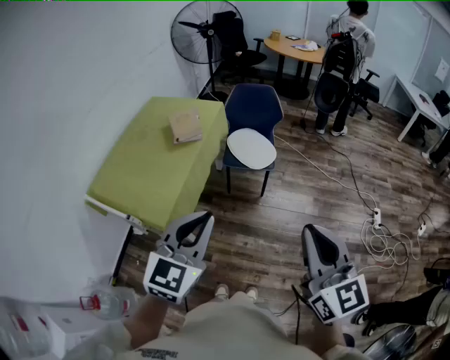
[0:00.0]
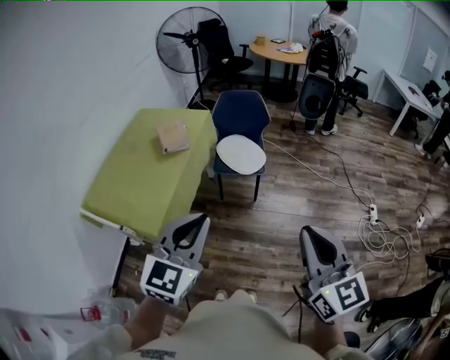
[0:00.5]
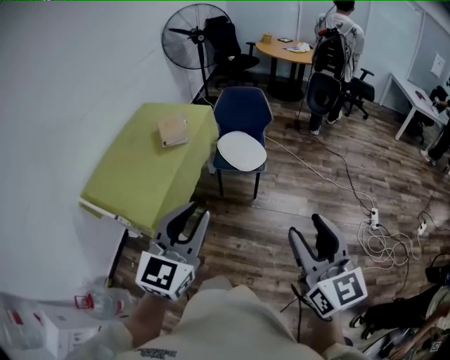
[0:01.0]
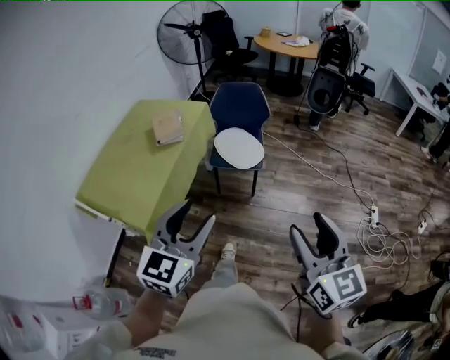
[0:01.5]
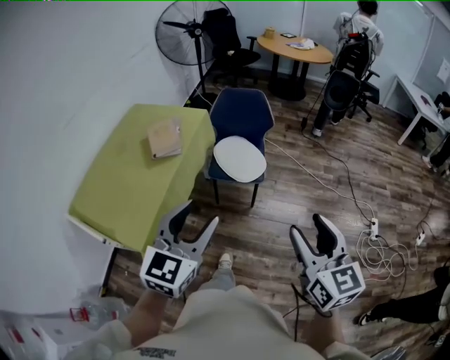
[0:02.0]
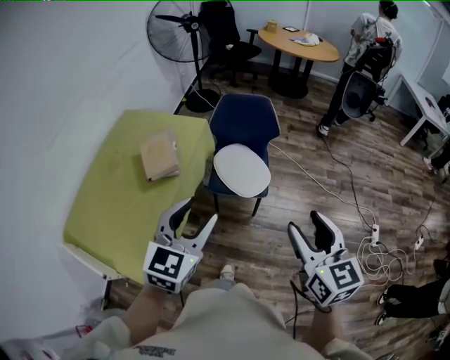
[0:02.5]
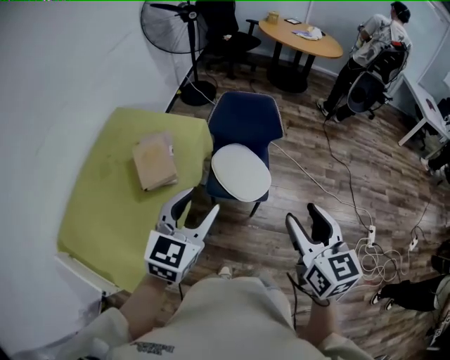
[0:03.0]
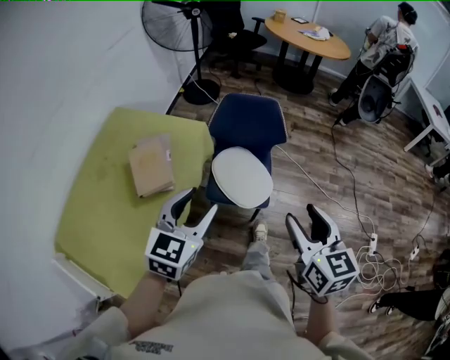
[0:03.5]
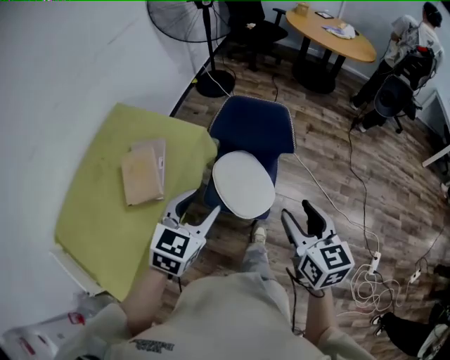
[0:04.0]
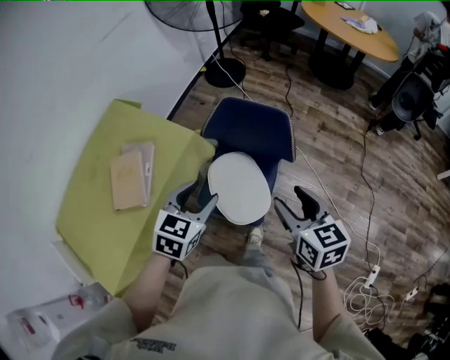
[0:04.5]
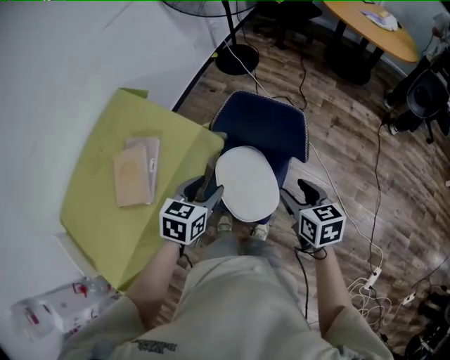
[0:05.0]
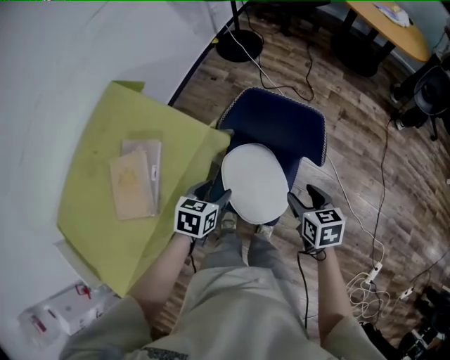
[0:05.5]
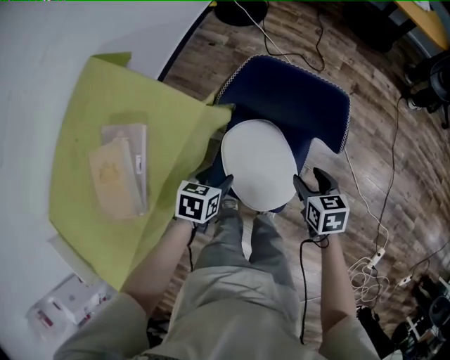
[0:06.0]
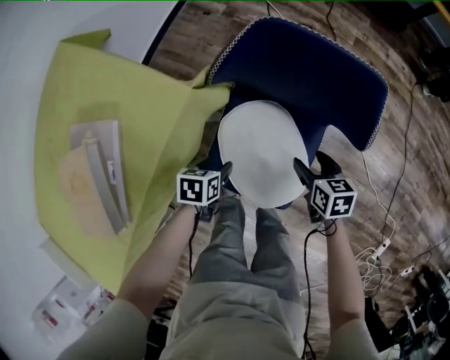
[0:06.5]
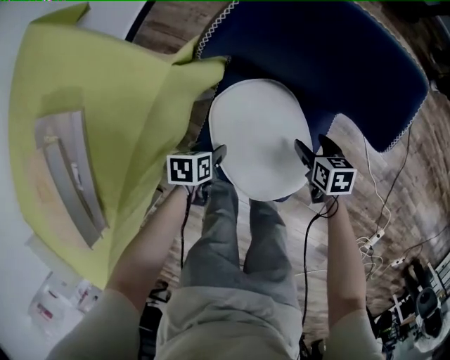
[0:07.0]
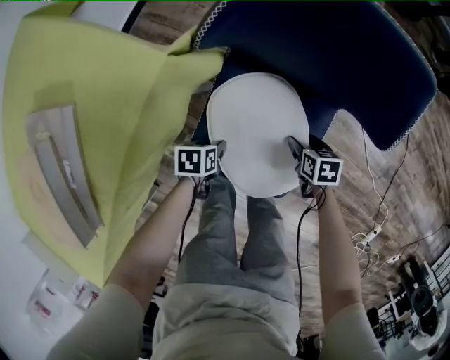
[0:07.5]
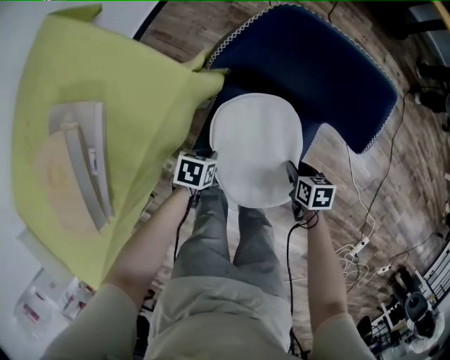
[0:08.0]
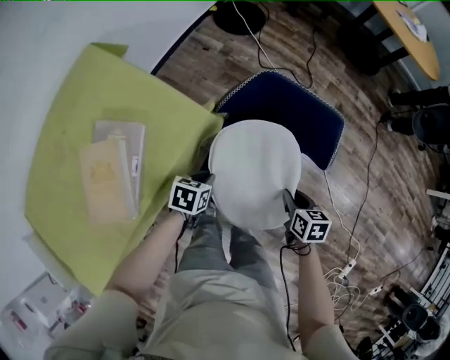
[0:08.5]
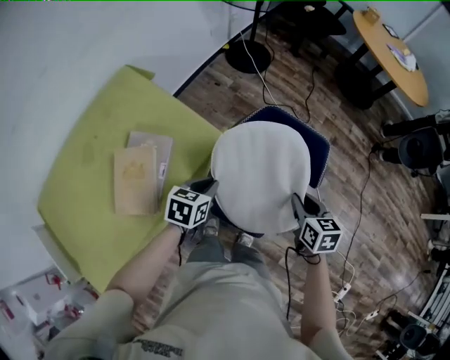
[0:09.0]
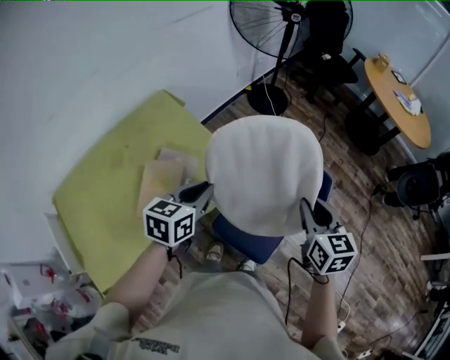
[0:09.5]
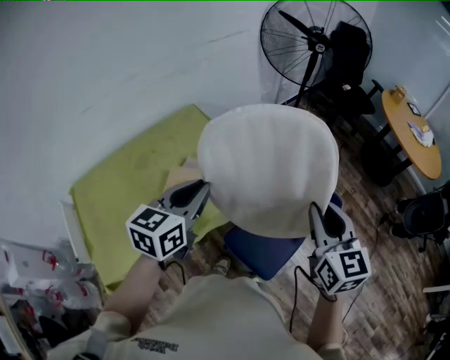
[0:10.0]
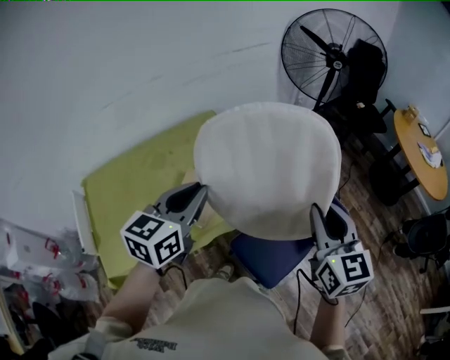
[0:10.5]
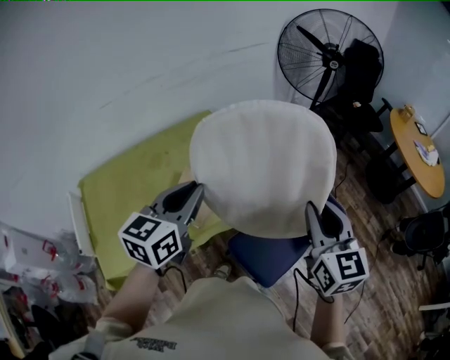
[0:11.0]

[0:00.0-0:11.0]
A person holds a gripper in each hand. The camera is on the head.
0:00.0 to 0:02.0: The grippers both shift forward and to the right by about 15 cm. The left gripper opens its fingers; the right gripper opens up.
0:02.0 to 0:03.5: The two grippers go some 30 cm forward.
0:03.5 to 0:05.5: The two grippers go roughly 40 cm forward and downward. The right gripper rotates roughly 30 degrees. Meanwhile the left gripper points its fingers roughly 30 degrees further downward.
0:05.5 to 0:07.5: The grippers both shift downward by approximately 40 cm. The left gripper rotates approximately 30 degrees, while the right gripper changes its angle by some 20 degrees.
0:07.5 to 0:09.0: The two grippers go roughly 40 cm upward. The left gripper rotates approximately 30 degrees, and closes. The right gripper changes its angle by about 30 degrees, and closes its fingers.
0:09.0 to 0:11.0: Both grippers travel together upward, about 30 cm. The right gripper tips its fingers upward by about 30 degrees. The left gripper points its fingers approximately 30 degrees further upward.

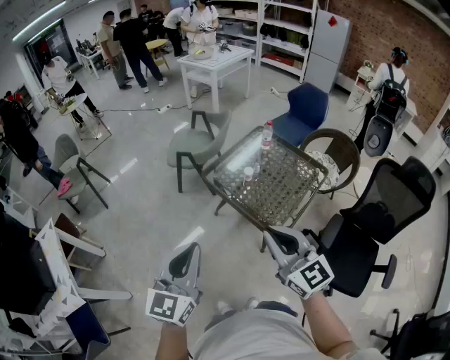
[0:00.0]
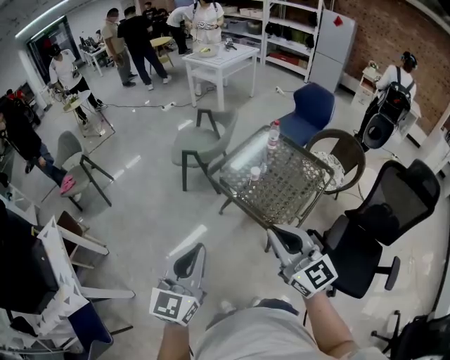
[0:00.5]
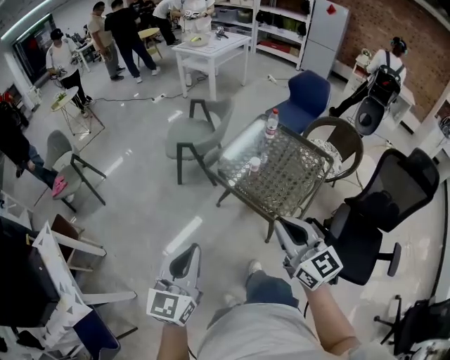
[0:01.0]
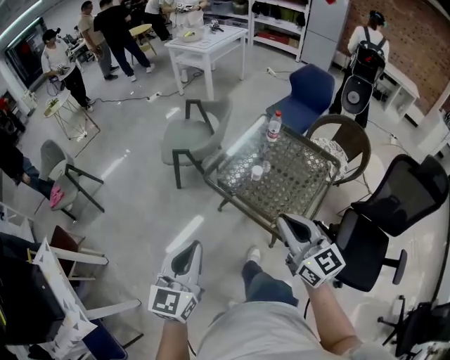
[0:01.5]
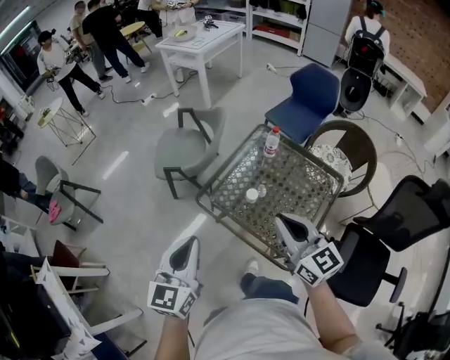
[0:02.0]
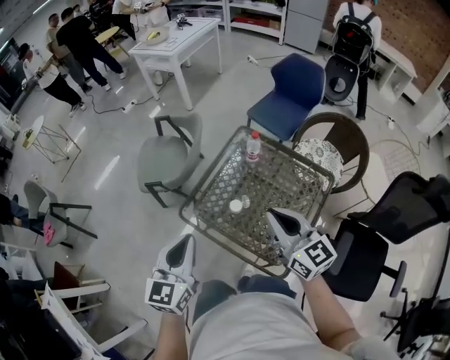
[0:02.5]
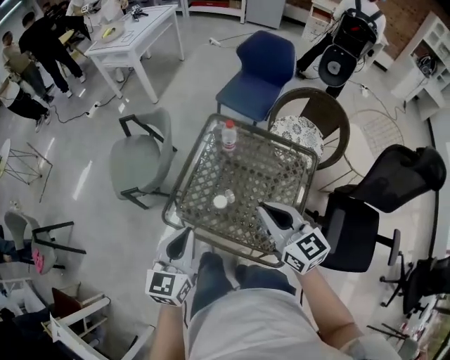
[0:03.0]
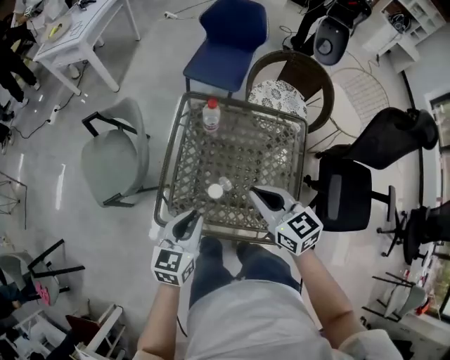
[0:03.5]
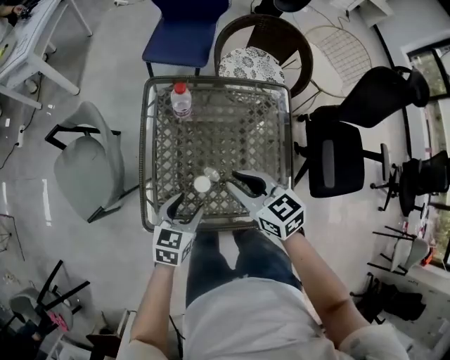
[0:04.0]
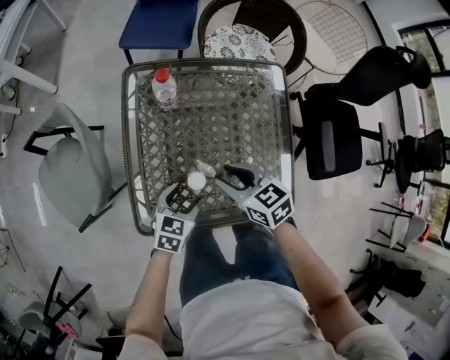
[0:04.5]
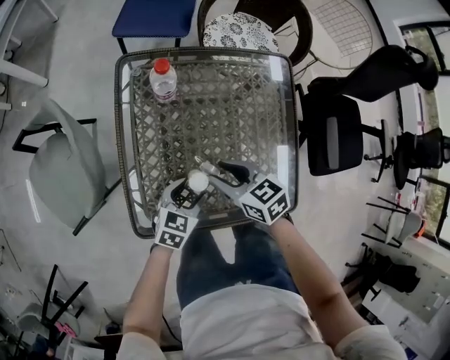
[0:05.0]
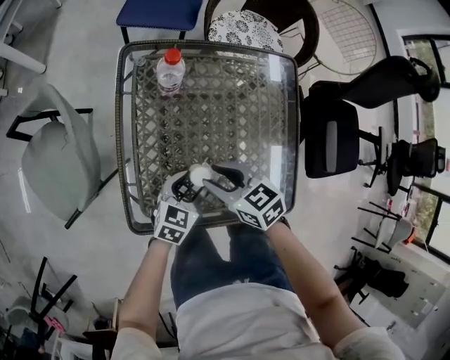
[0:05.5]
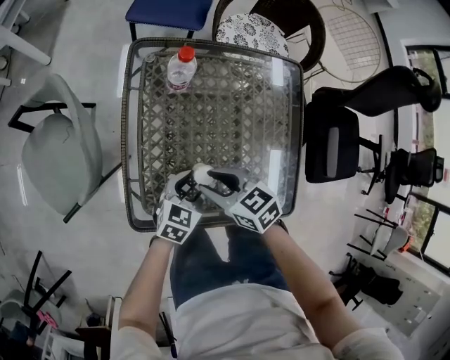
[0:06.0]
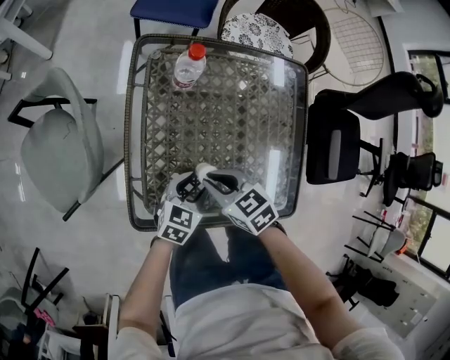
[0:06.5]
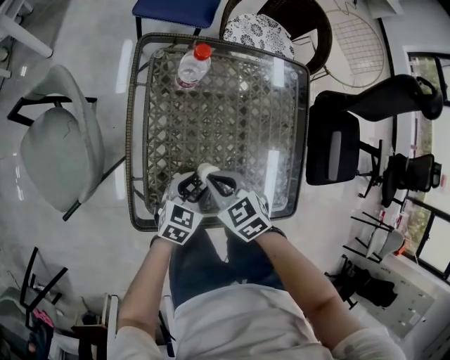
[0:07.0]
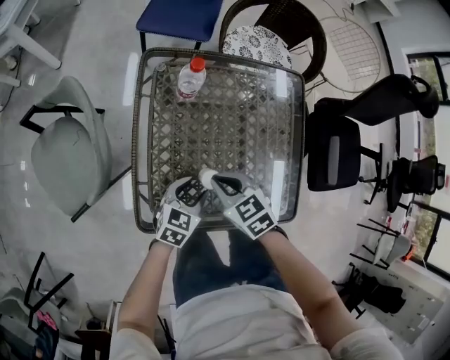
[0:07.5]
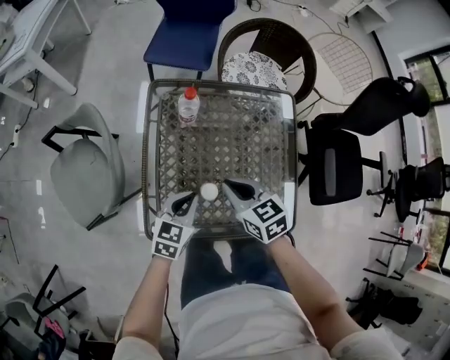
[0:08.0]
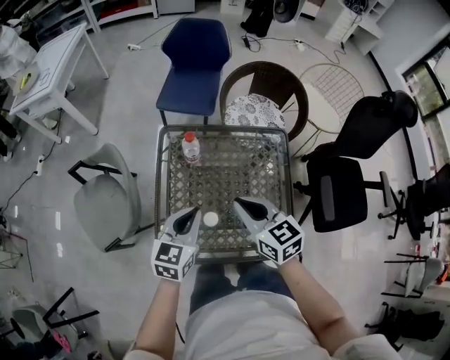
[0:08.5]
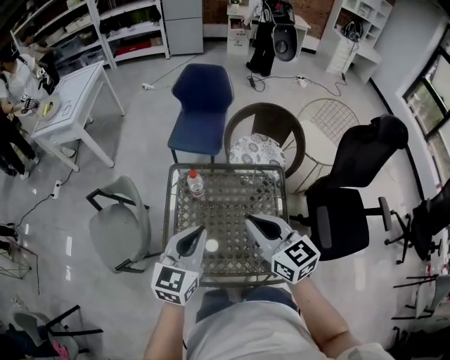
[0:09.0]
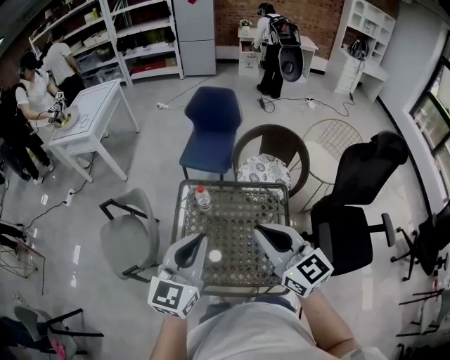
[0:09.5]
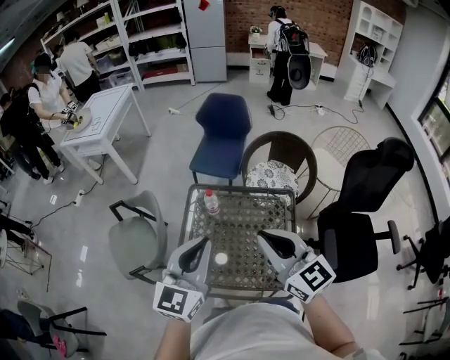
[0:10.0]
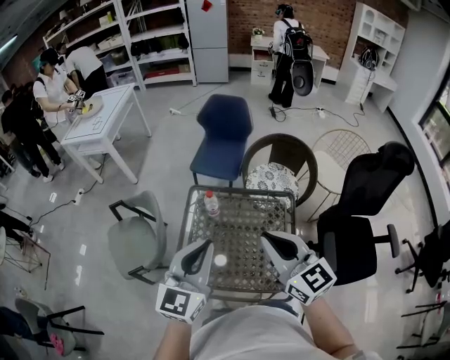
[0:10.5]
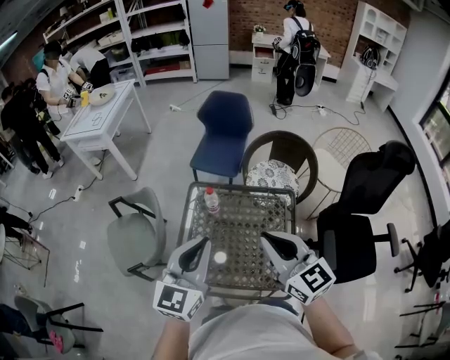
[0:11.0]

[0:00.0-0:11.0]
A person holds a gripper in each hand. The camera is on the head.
0:00.0 to 0:02.0: The two grippers go roughly 30 cm forward.
0:02.0 to 0:03.5: The right gripper ends up about 20 cm from where it was, and rotates approximately 30 degrees. The left gripper changes place by about 30 cm, and swivels some 40 degrees.
0:03.5 to 0:05.5: Both grippers move downward, roughly 25 cm. The right gripper swivels some 20 degrees, and opens, while the left gripper turns by some 30 degrees, and opens up.
0:05.5 to 0:07.5: The right gripper closes its fingers.
0:07.5 to 0:09.0: The grippers both shift upward by some 35 cm. The right gripper points its fingers some 40 degrees further upward; the left gripper swivels roughly 30 degrees, and closes up.
0:09.0 to 0:11.0: The right gripper travels upward and backward by approximately 10 cm; the left gripper shifts approximately 10 cm upward.

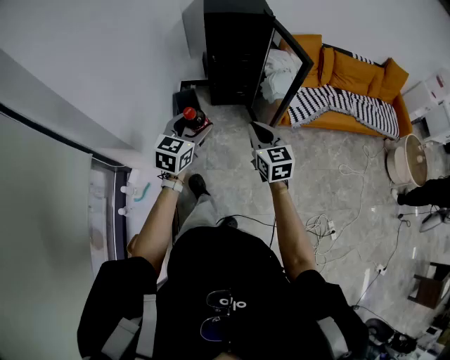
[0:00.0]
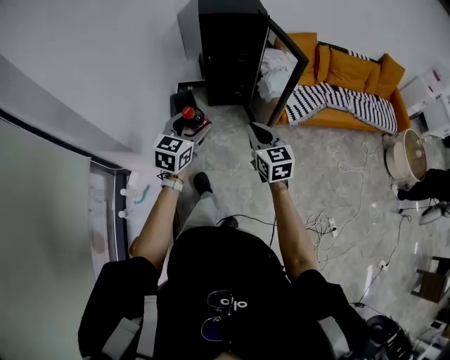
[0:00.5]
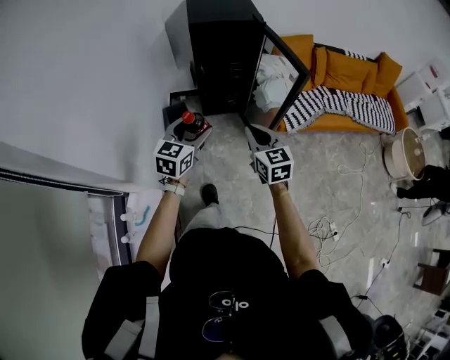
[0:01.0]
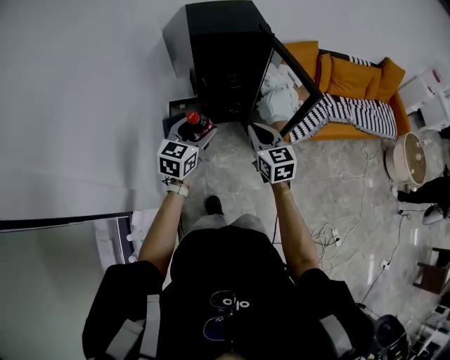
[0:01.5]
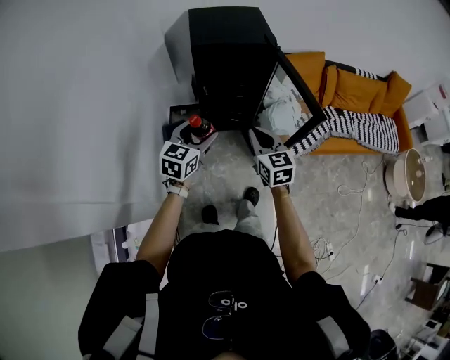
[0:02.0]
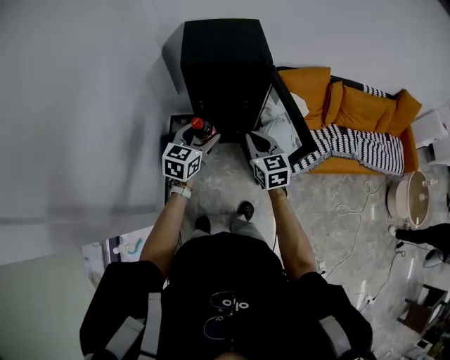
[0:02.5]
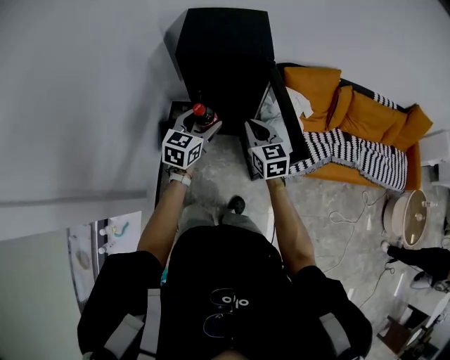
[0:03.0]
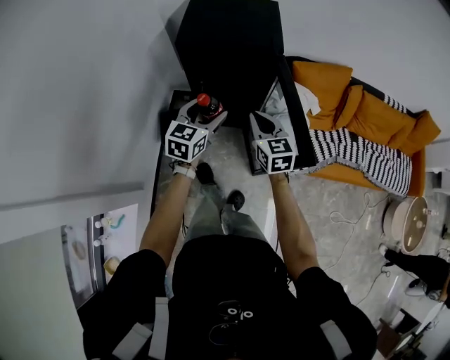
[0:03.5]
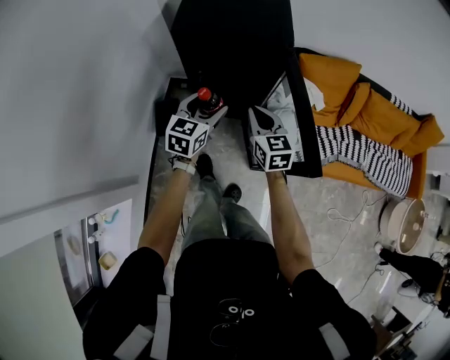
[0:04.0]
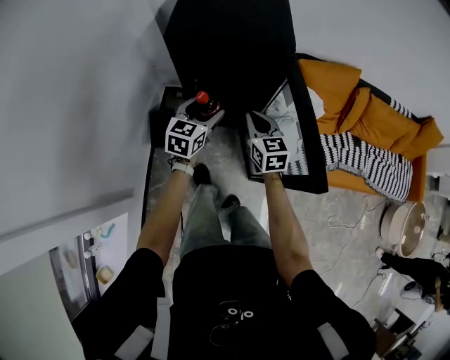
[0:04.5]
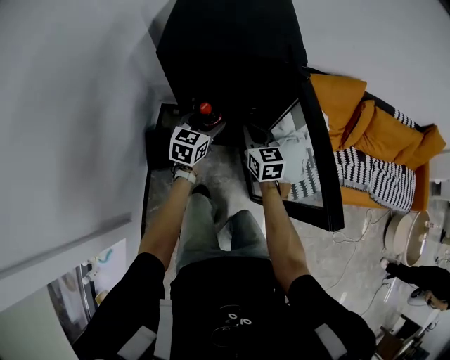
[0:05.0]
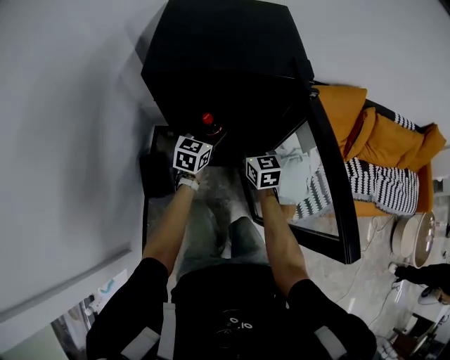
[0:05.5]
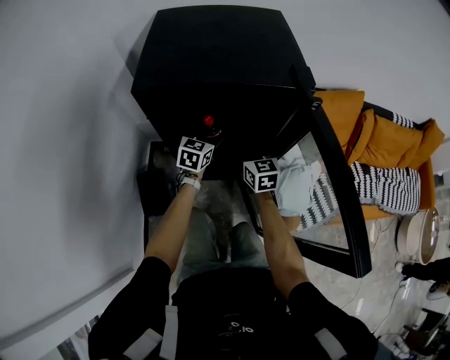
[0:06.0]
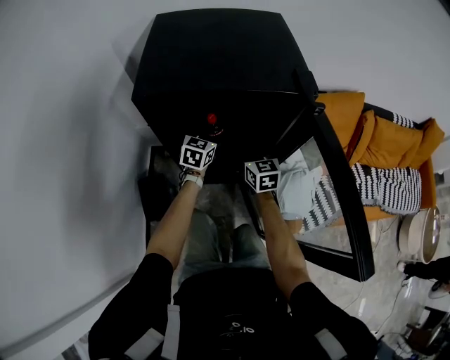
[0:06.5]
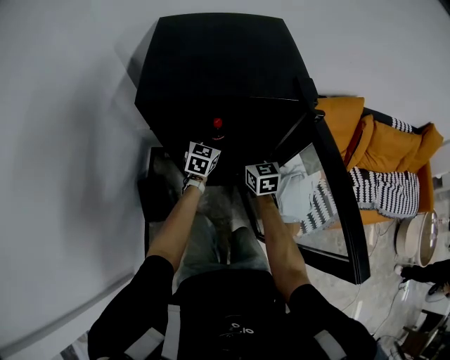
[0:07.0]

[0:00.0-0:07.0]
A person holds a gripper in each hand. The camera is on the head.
0:00.0 to 0:02.0: The grippers both shift forward by approximately 30 cm.
0:02.0 to 0:03.5: The two grippers go about 20 cm forward and to the right.
0:03.5 to 0:05.0: The two grippers go roughly 25 cm downward and forward.
0:05.0 to 0:07.0: Both grippers travel together forward and downward, roughly 20 cm.
